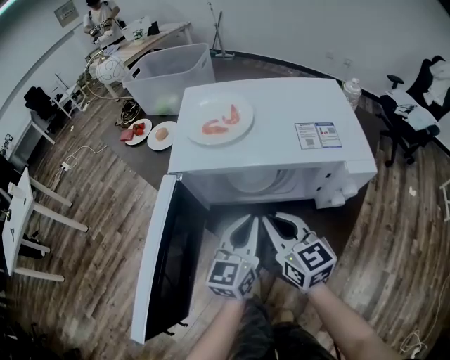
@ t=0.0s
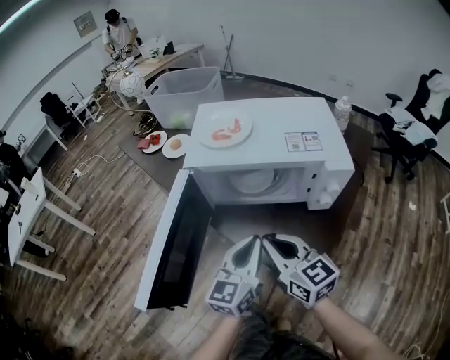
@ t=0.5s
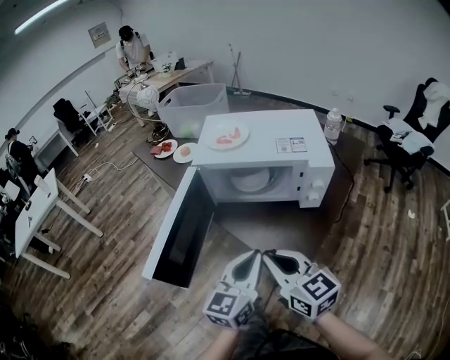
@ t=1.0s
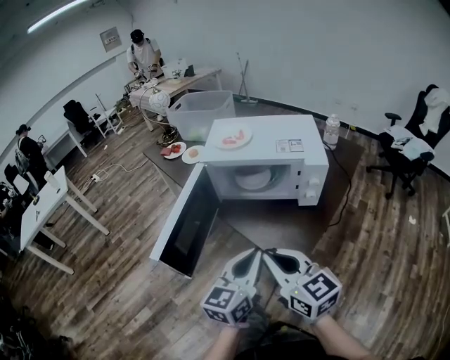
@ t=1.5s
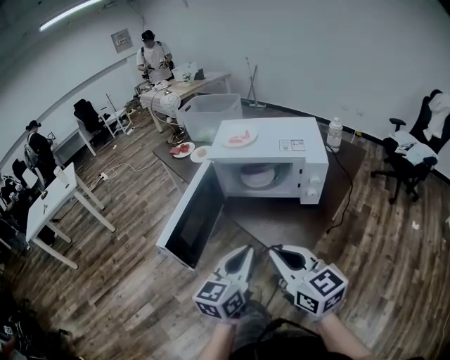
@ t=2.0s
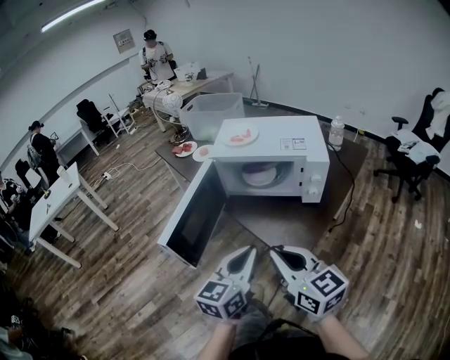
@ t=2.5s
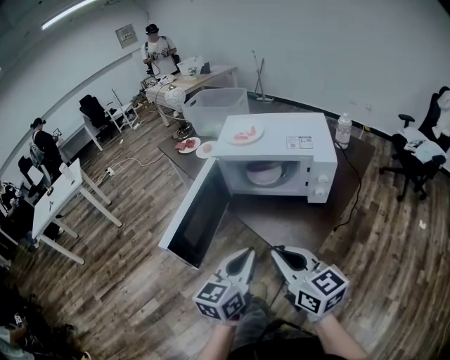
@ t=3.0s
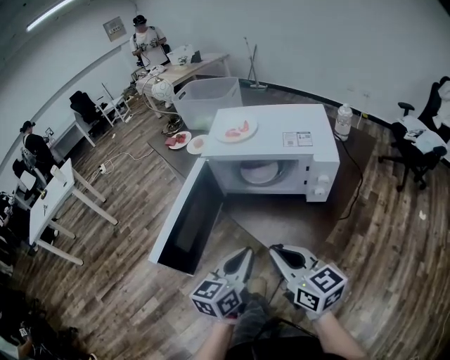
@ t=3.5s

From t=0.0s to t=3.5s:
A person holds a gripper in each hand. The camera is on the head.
From t=0.0s to t=2.0s: The two grippers go roughly 30 cm backward and upward.
From t=2.0s to t=3.5s: Both grippers move forward, roughly 5 cm.

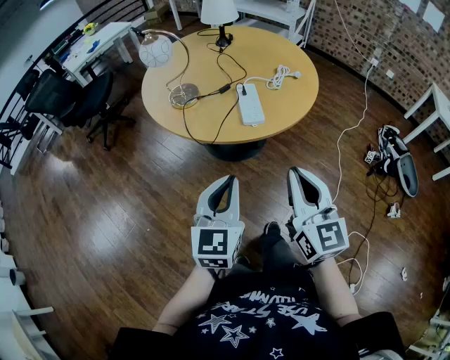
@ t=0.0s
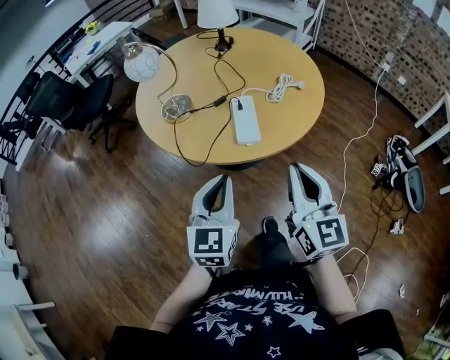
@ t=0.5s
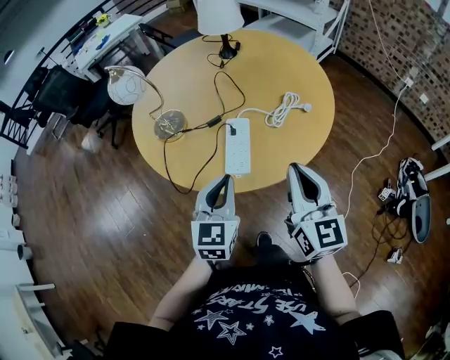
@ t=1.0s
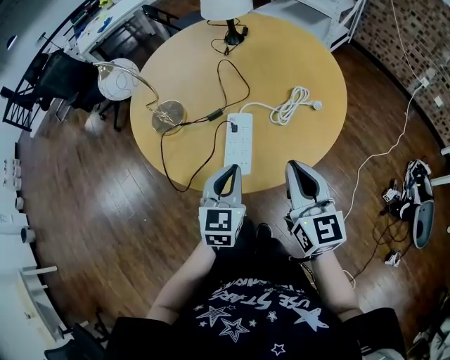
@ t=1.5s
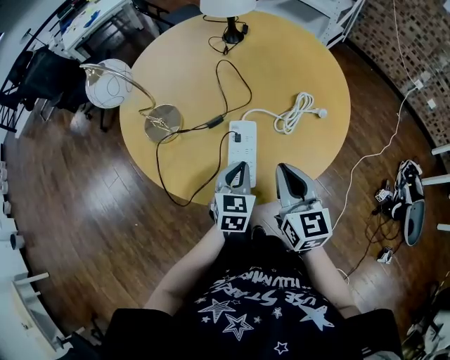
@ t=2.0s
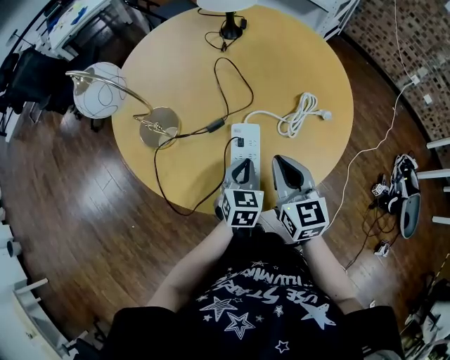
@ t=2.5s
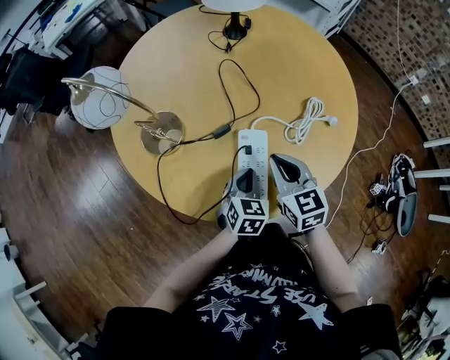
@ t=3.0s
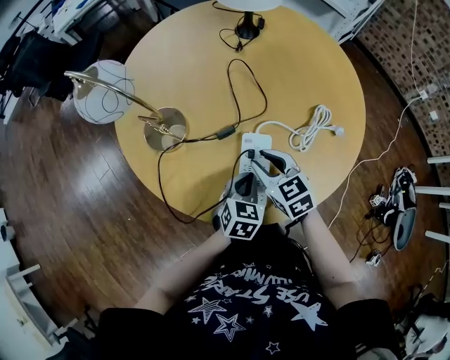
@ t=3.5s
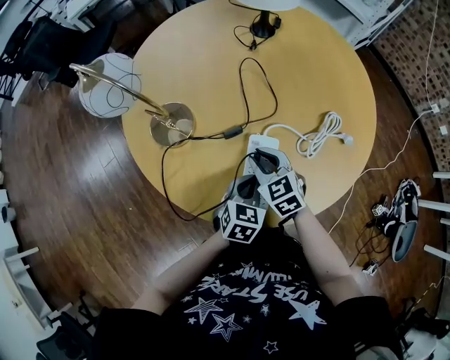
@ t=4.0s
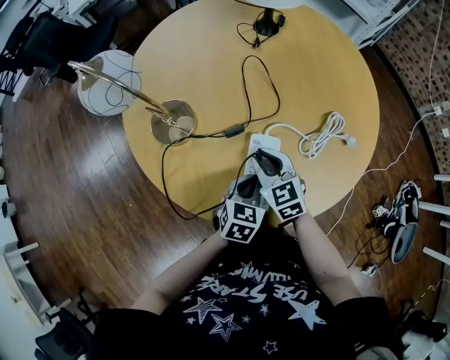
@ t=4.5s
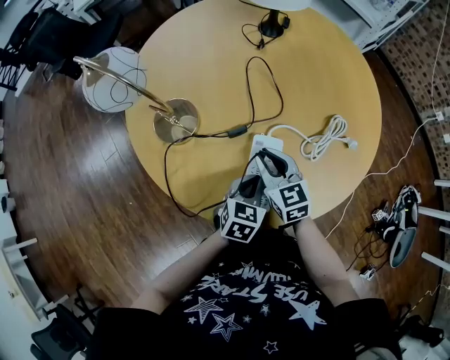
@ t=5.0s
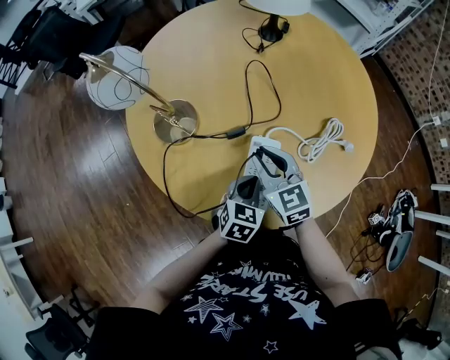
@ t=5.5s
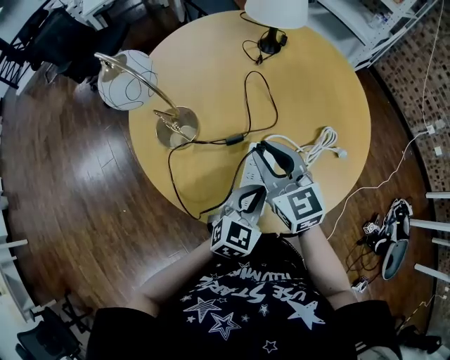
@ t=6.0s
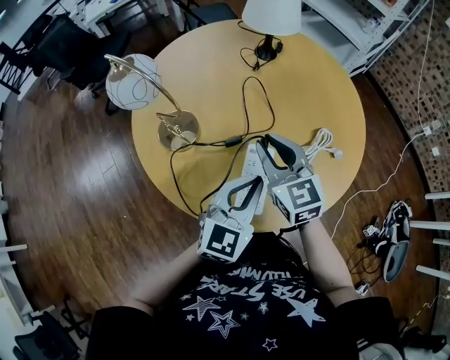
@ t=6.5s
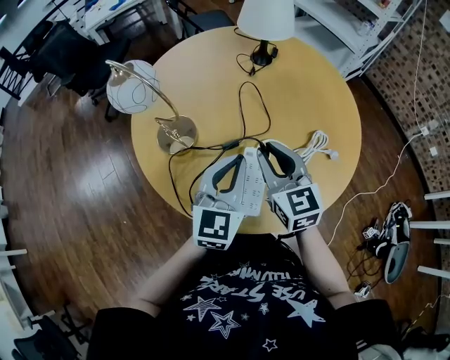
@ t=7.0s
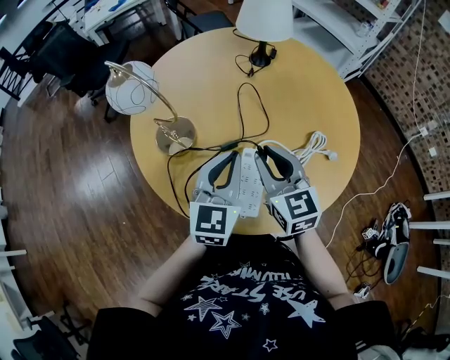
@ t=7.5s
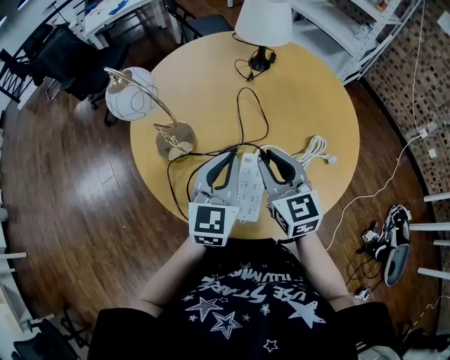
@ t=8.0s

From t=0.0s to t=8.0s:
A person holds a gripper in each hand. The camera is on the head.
From t=0.0s to t=2.0s: The left gripper moves forward and downward, some 35 cm, and turns by roughly 20 degrees, while the right gripper heads forward, covering some 30 cm.
From t=2.0s to t=4.0s: The left gripper is displaced downward by some 5 cm. The right gripper is displaced downward, forward and to the left by roughly 20 cm, and turns by approximately 40 degrees.
From t=4.0s to t=6.0s: The right gripper is displaced upward by some 15 cm, and changes its angle by about 20 degrees; the left gripper moves upward, roughly 10 cm, and turns by about 20 degrees.
From t=6.0s to t=8.0s: The left gripper shifts about 15 cm upward, forward and to the left, and changes its angle by approximately 30 degrees.

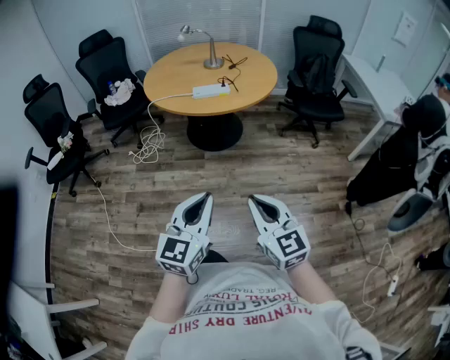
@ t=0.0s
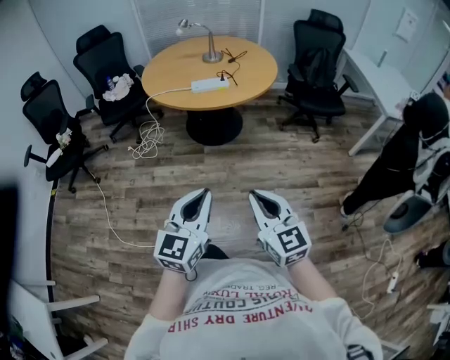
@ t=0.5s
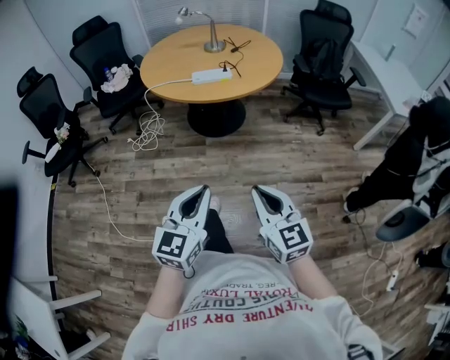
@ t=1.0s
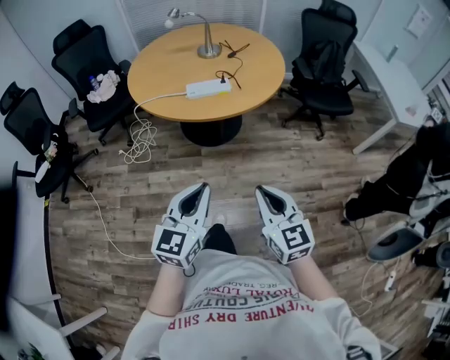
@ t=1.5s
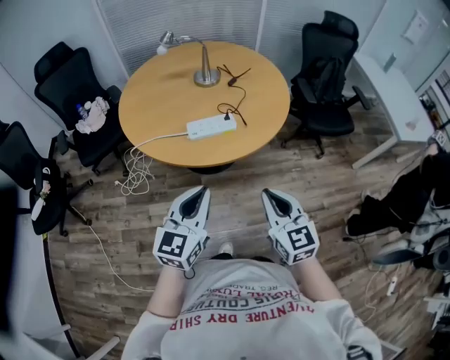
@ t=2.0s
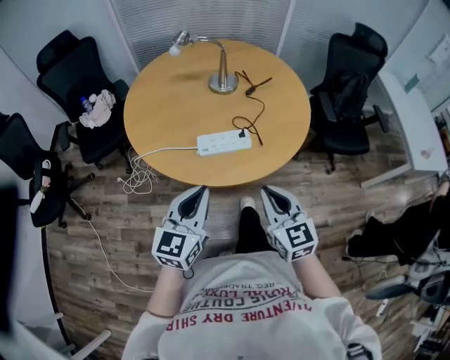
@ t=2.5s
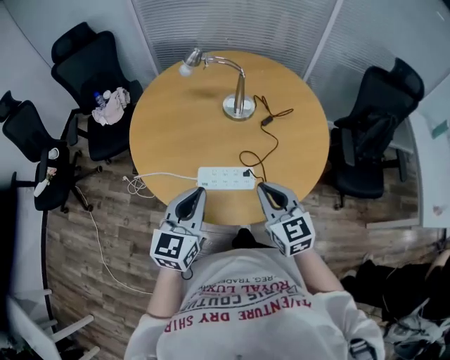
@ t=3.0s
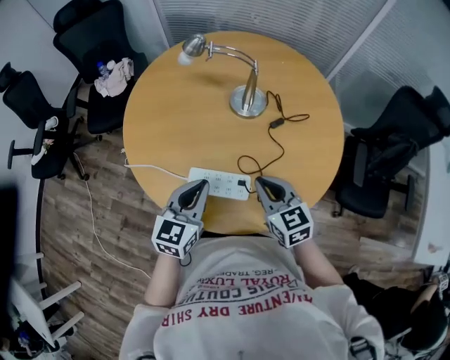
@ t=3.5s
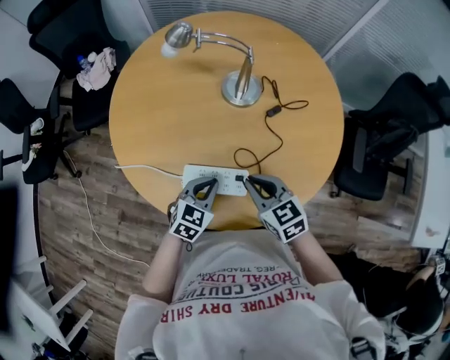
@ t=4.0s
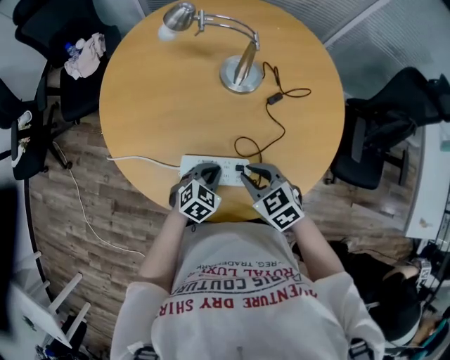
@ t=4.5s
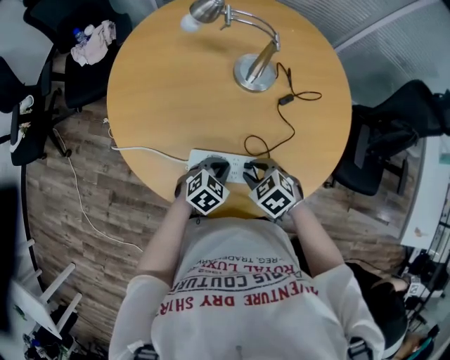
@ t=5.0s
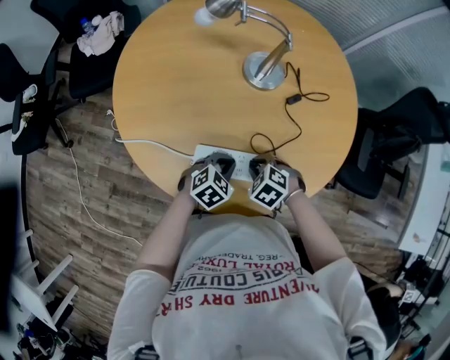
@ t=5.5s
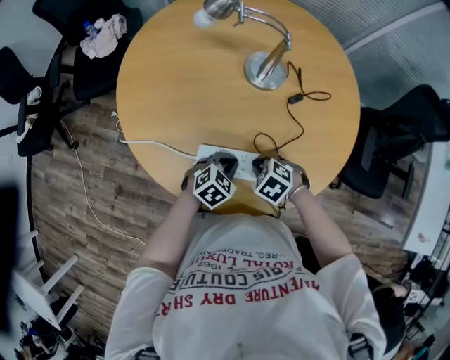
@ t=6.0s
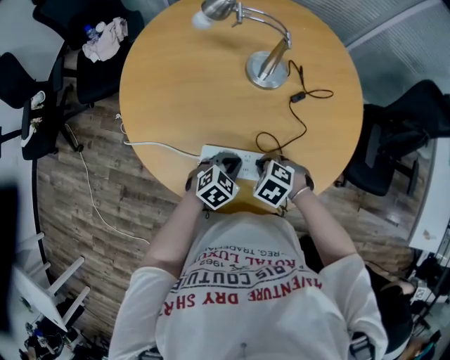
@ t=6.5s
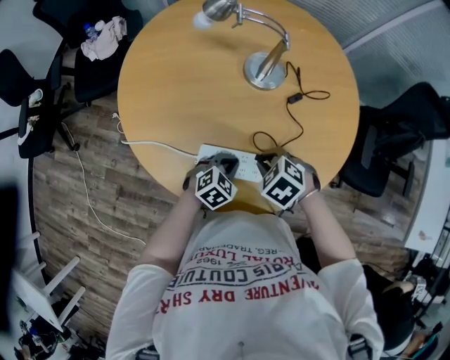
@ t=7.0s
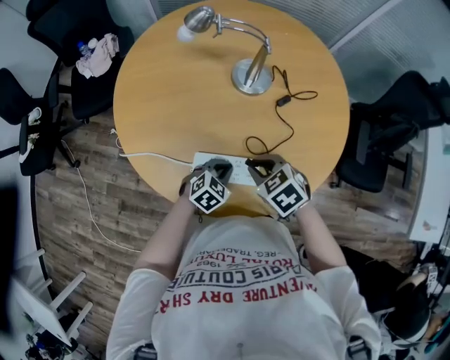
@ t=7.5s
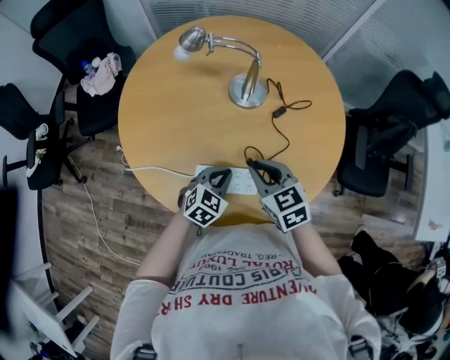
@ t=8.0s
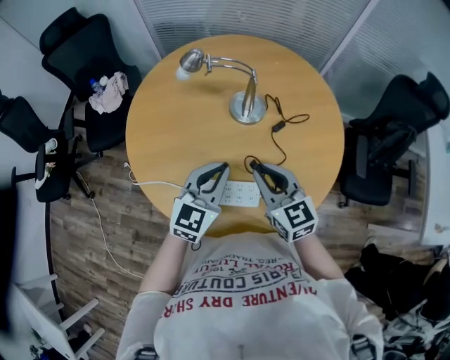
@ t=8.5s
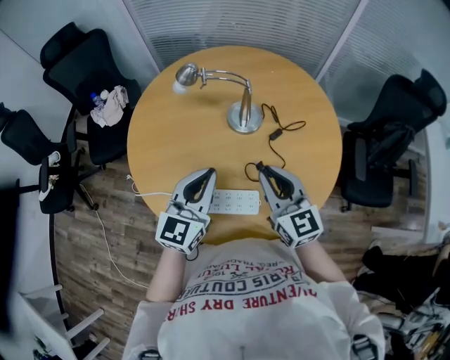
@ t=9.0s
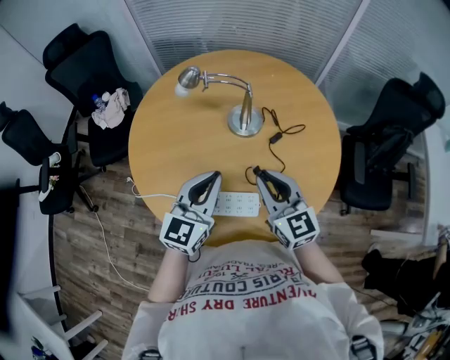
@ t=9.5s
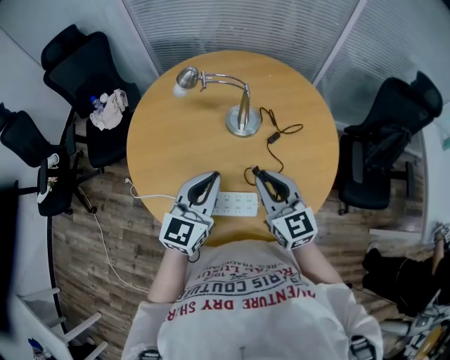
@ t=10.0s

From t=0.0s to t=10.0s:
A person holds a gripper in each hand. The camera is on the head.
From t=0.0s to t=2.0s: The grippers both shift forward by roughly 40 cm.
From t=2.0s to t=4.0s: The right gripper shifts by approximately 40 cm, and turns by about 40 degrees. The left gripper changes place by roughly 40 cm, and angles its fingers downward, by approximately 30 degrees.
From t=4.0s to t=6.0s: The left gripper is displaced downward by approximately 5 cm. Meanwhile the right gripper shifts approximately 10 cm downward, and tips its fingers downward by roughly 40 degrees.
From t=6.0s to t=8.0s: The right gripper goes roughly 15 cm upward, and tilts its fingers about 40 degrees upward; the left gripper goes approximately 5 cm upward.
From t=8.0s to t=10.0s: The left gripper travels upward by approximately 20 cm, and tips its fingers upward by roughly 30 degrees; the right gripper is displaced upward by some 10 cm, and swivels about 30 degrees.

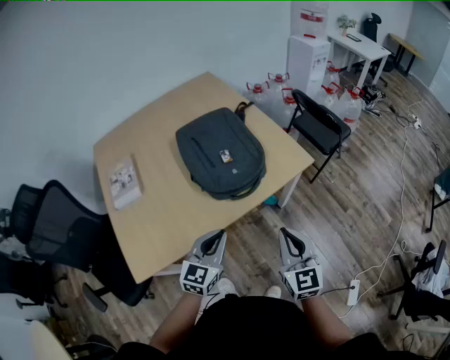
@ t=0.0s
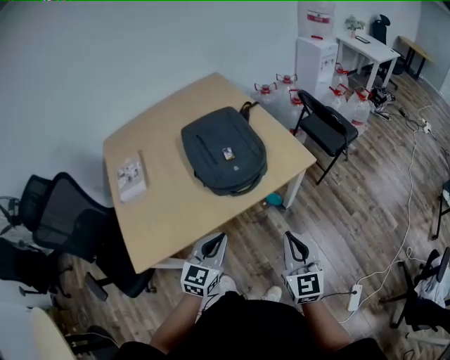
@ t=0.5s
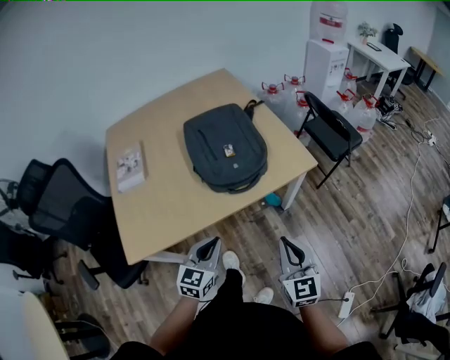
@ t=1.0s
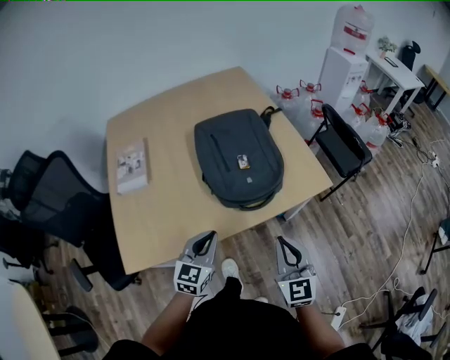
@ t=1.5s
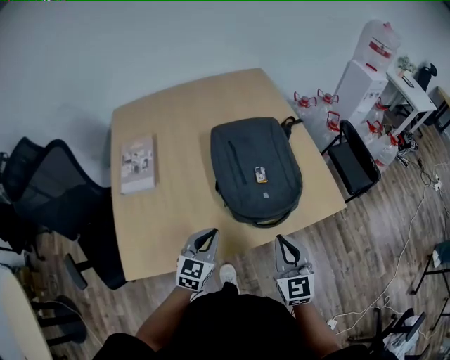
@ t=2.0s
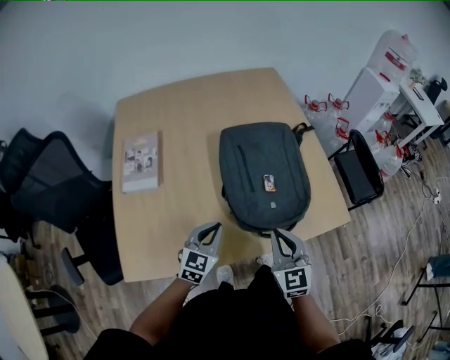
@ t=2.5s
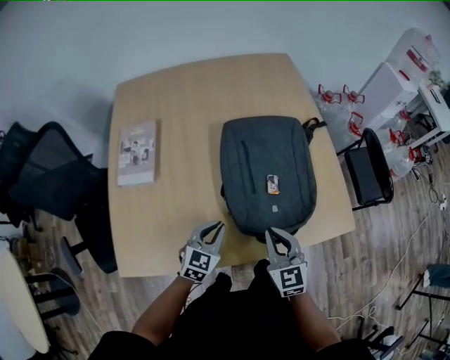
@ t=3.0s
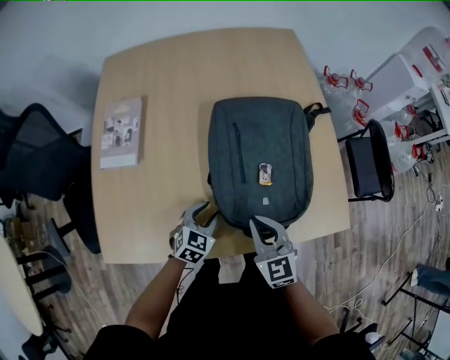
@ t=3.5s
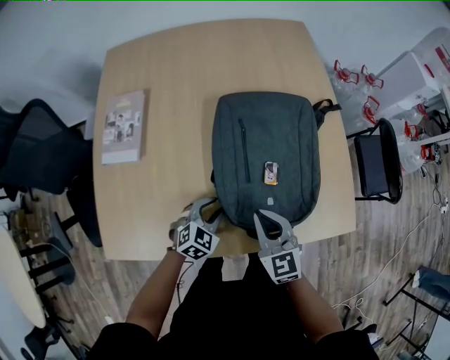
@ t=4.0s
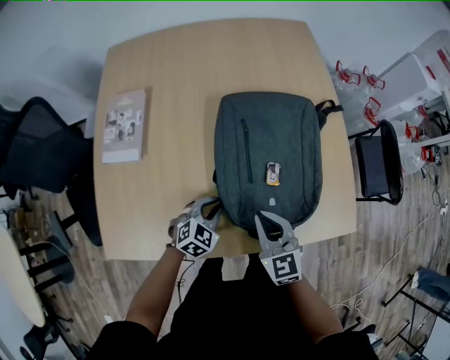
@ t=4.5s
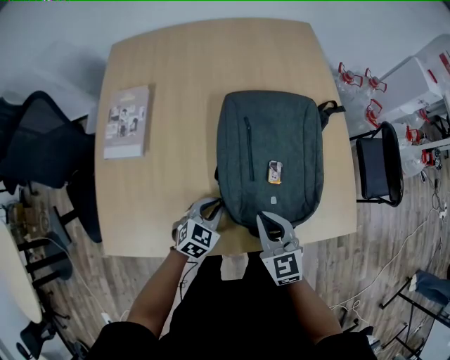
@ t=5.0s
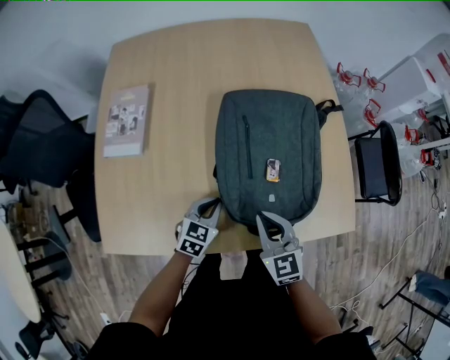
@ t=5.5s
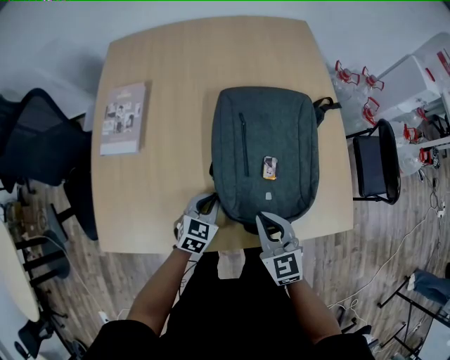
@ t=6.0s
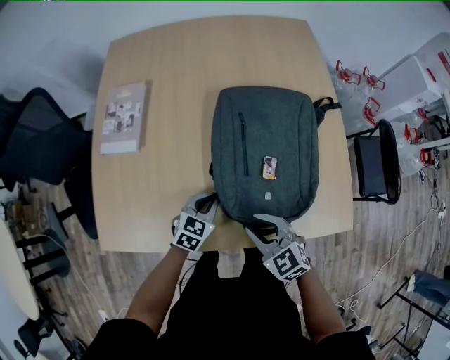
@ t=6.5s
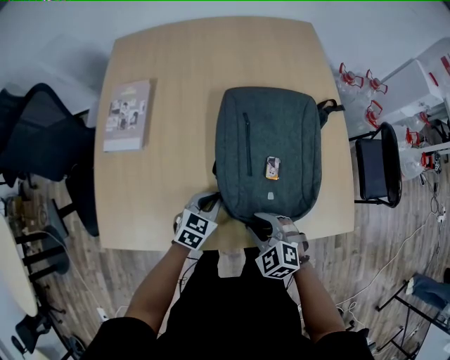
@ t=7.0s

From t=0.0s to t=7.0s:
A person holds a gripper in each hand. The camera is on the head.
From t=0.0s to t=2.0s: The right gripper shifts roughly 15 cm forward and to the left. Meanwhile the left gripper travels forward, to the left and downward by roughly 15 cm.
From t=2.0s to t=3.5s: The left gripper moves downward and forward, approximately 15 cm, swivels some 20 degrees, and opens its fingers. Meanwhile the right gripper heads forward and downward, covering approximately 15 cm, and changes its angle by some 20 degrees.
From t=3.5s to t=5.0s: The left gripper closes its fingers.
From t=5.0s to t=7.0s: The right gripper travels downward by about 5 cm, rotates approximately 40 degrees, and opens up.
